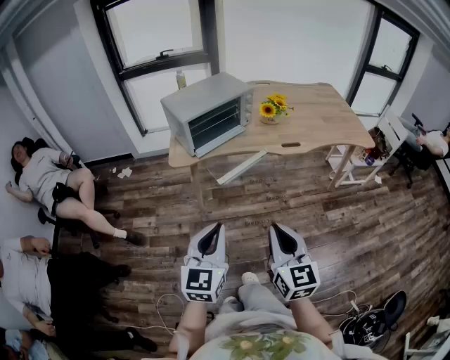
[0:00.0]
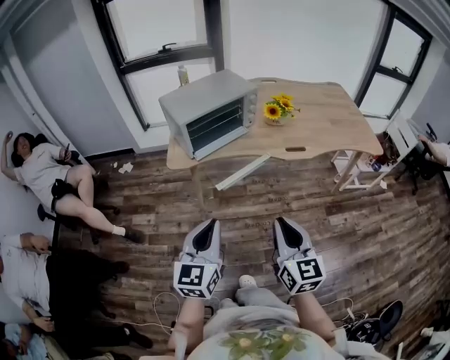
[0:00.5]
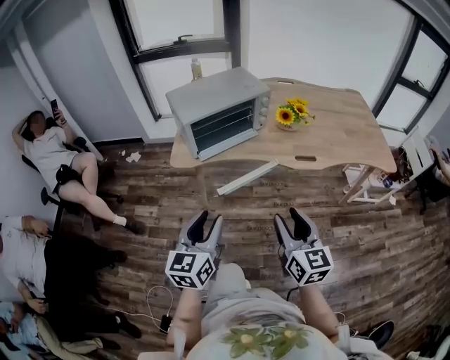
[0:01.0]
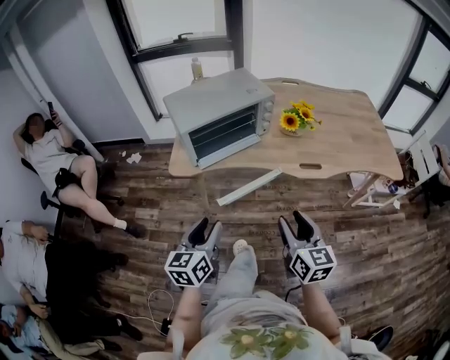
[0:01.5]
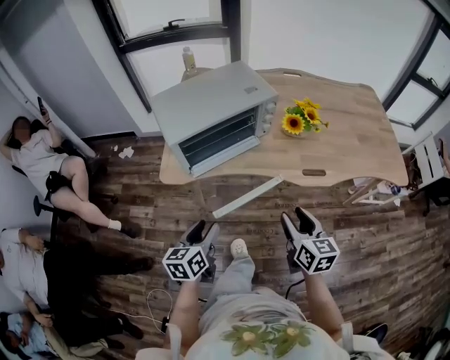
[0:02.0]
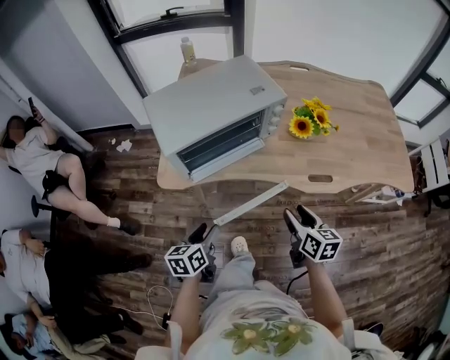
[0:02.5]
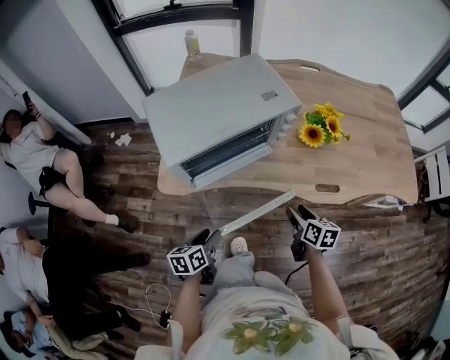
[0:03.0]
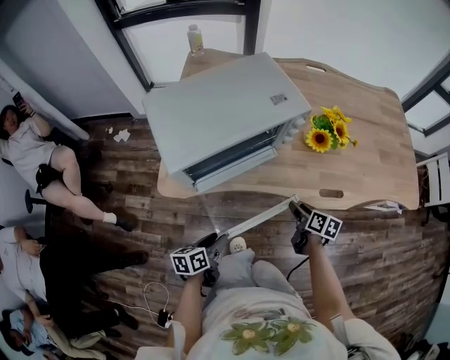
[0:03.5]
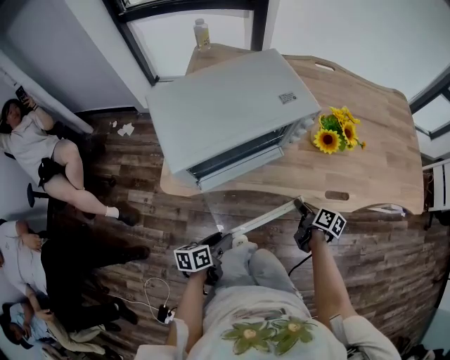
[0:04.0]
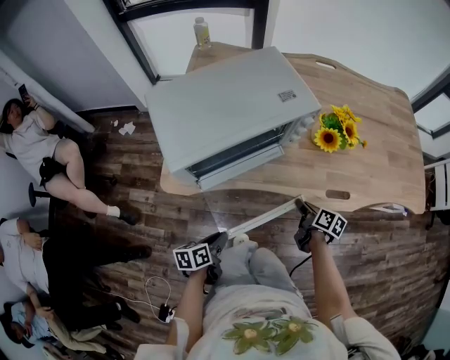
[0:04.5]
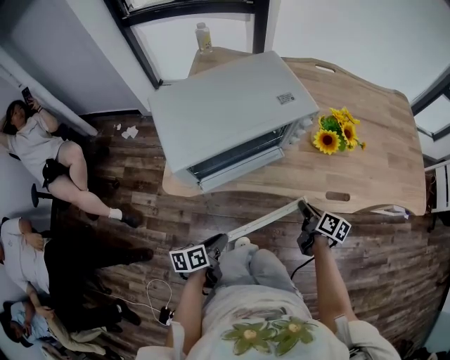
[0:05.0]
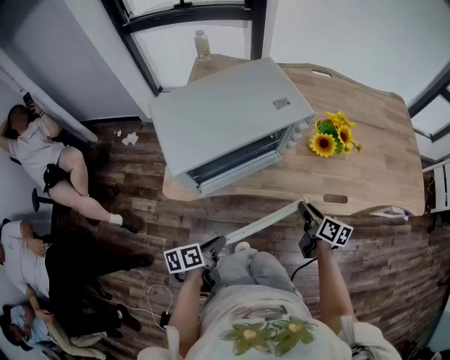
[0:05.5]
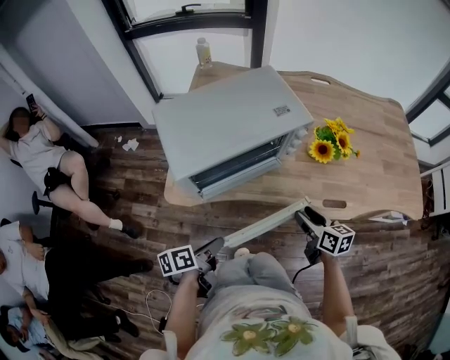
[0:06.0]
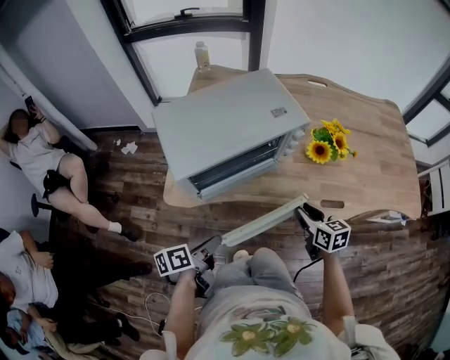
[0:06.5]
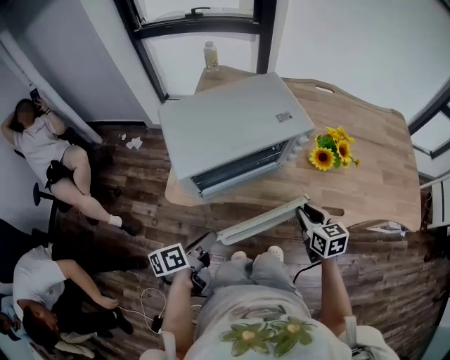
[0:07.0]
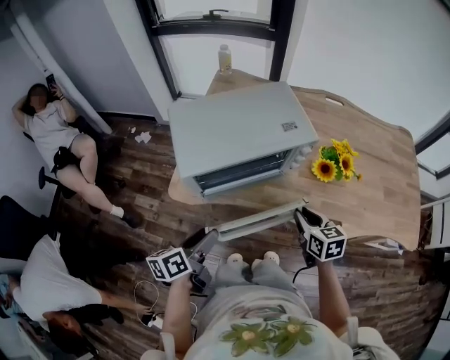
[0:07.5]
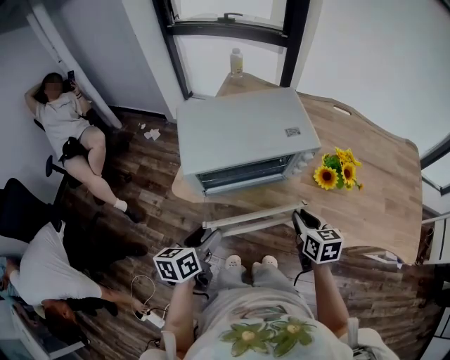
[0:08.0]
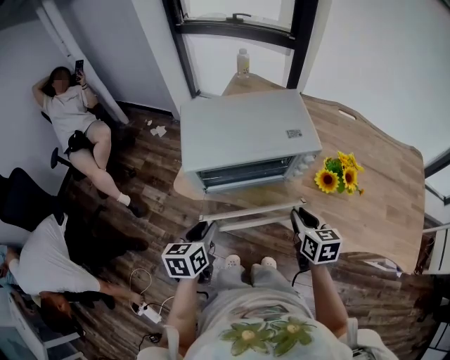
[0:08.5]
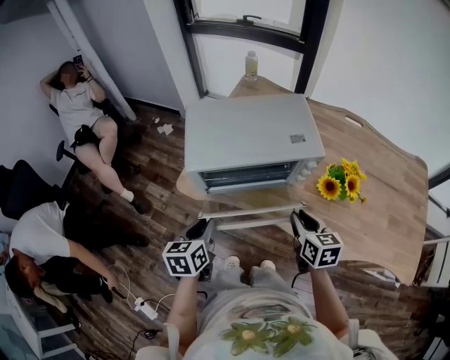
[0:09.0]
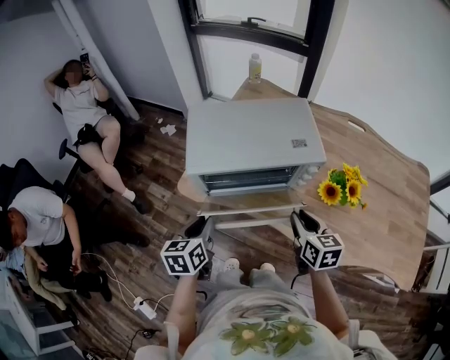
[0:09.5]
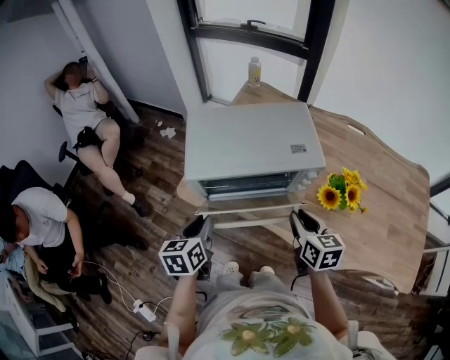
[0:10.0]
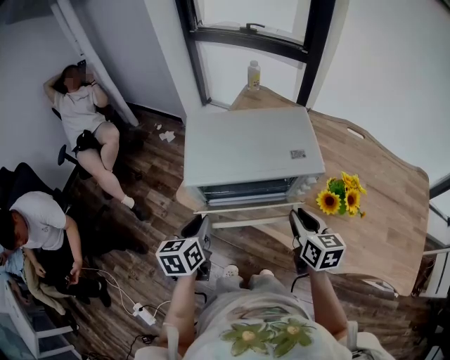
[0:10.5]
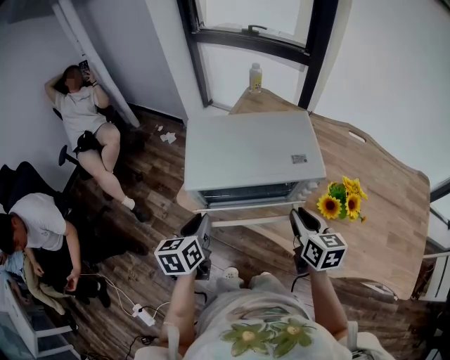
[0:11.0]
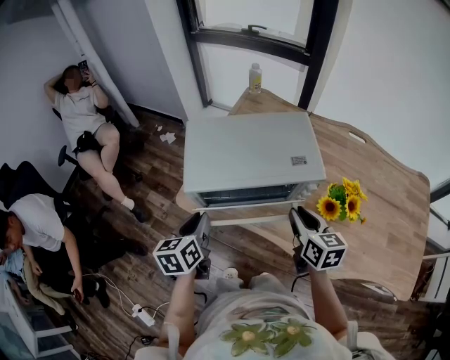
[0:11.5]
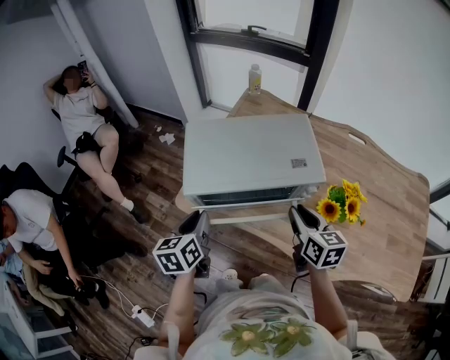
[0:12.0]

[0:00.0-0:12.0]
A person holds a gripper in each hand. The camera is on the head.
0:00.0 to 0:02.0: The left gripper travels forward and downward by some 30 cm, rotates approximately 40 degrees, and opens up. Meanwhile the right gripper travels forward by roughly 30 cm, turns by roughly 20 degrees, and opens.
0:02.0 to 0:04.0: The right gripper shifts some 30 cm downward and forward, and rolls clockwise, seen from behind, by approximately 40 degrees; the left gripper goes approximately 20 cm downward and forward, and swivels about 30 degrees.
0:04.0 to 0:06.0: Both grippers travel together upward, some 10 cm. The right gripper rotates some 40 degrees. Meanwhile the left gripper closes up.
0:06.0 to 0:08.0: Both grippers travel together upward, about 5 cm. The right gripper turns by roughly 20 degrees, and closes its fingers; the left gripper changes its angle by roughly 30 degrees, and opens up.
0:08.0 to 0:10.0: The right gripper moves about 5 cm, while the left gripper shifts approximately 5 cm forward, swivels roughly 20 degrees, and closes its fingers.
0:10.0 to 0:12.0: Both grippers move forward, some 5 cm.

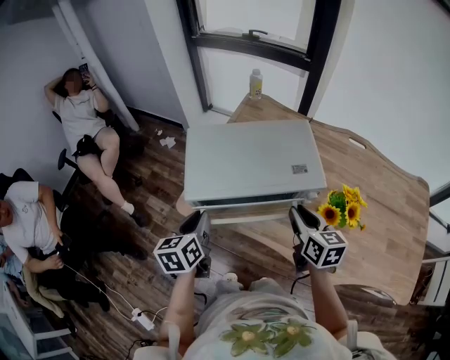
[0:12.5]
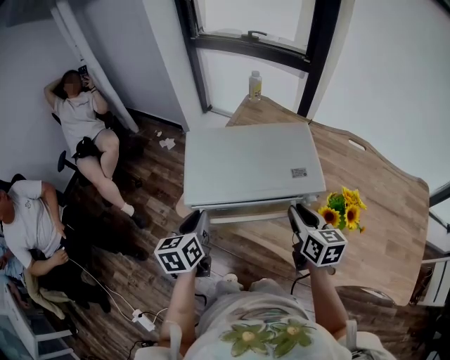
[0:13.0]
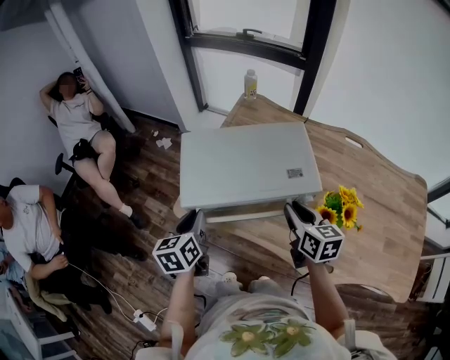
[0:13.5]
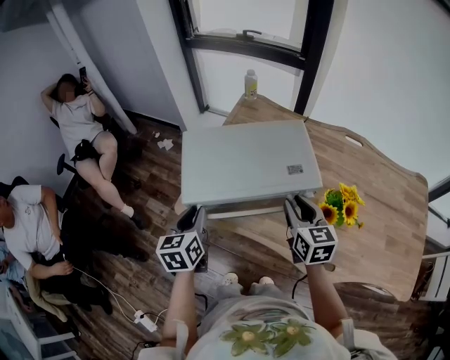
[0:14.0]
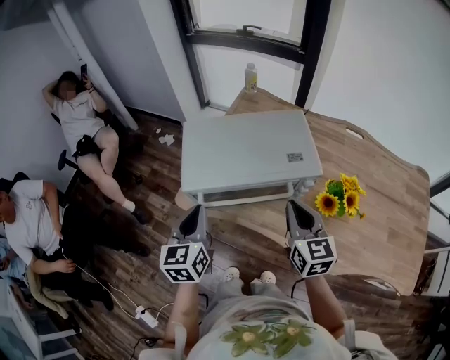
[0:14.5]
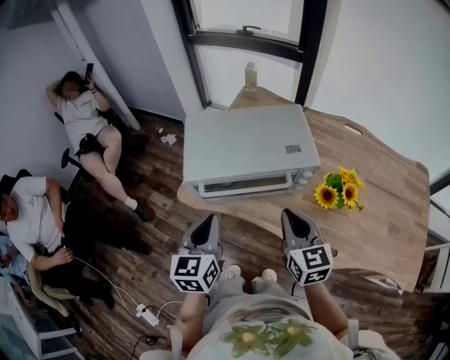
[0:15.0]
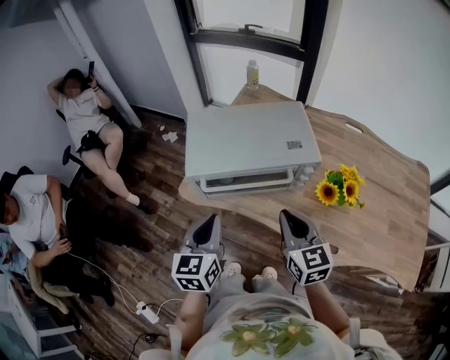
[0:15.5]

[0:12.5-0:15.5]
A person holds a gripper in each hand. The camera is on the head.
0:12.5 to 0:14.0: The grippers stay close to where they were, moving slightly.
0:14.0 to 0:15.5: Both grippers travel together backward, some 10 cm. The right gripper closes its fingers.

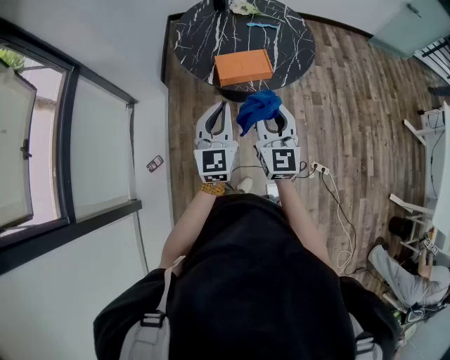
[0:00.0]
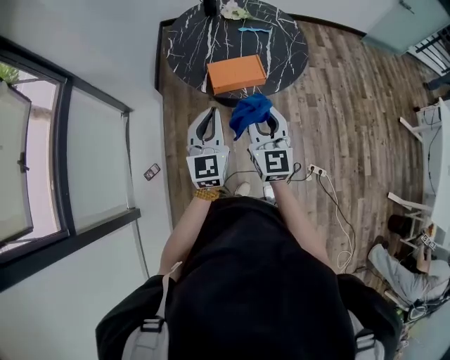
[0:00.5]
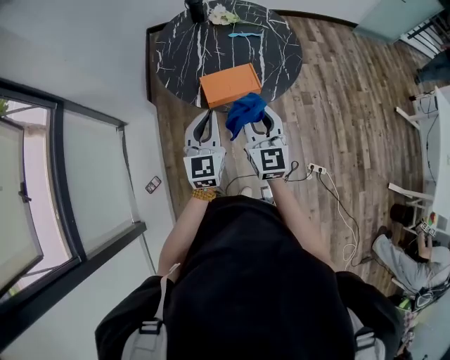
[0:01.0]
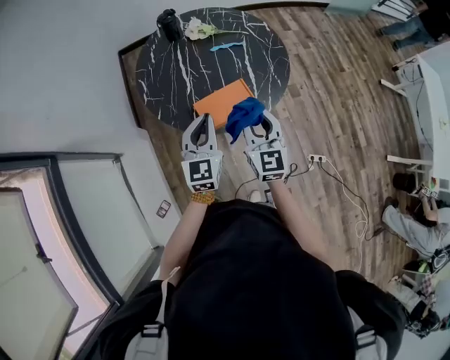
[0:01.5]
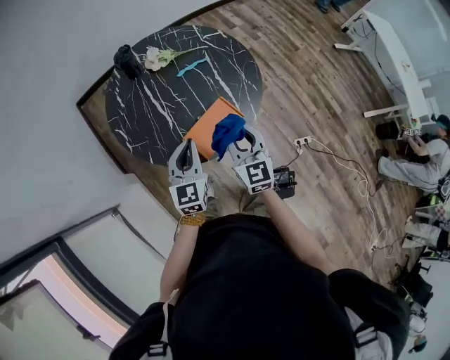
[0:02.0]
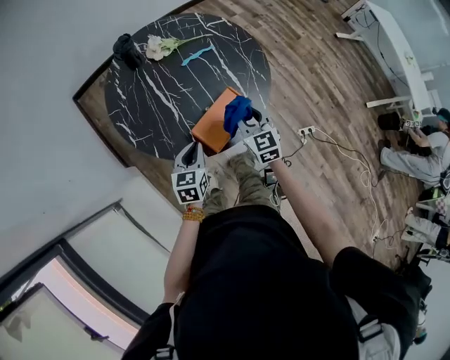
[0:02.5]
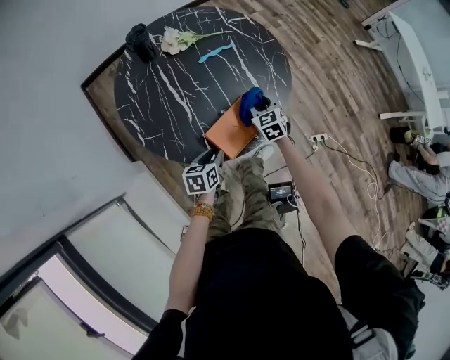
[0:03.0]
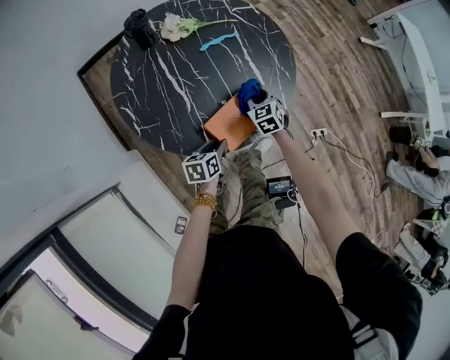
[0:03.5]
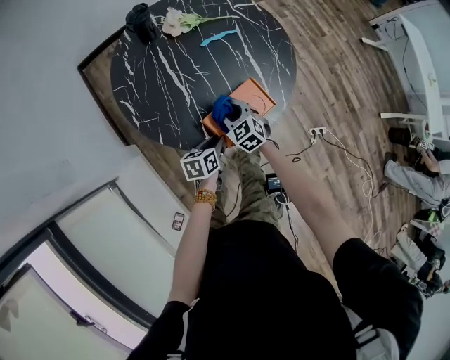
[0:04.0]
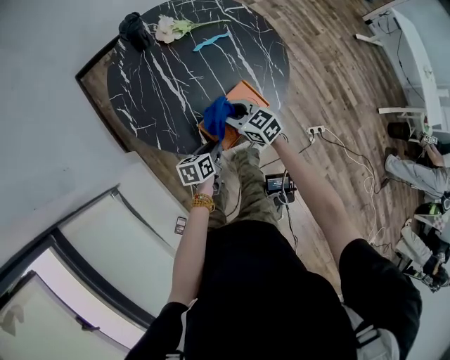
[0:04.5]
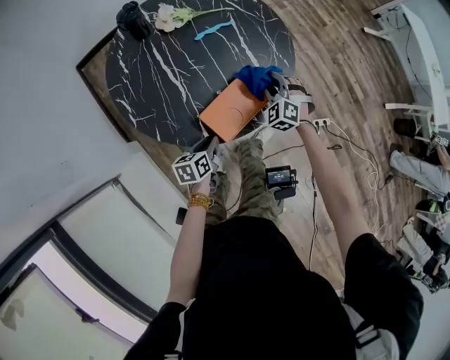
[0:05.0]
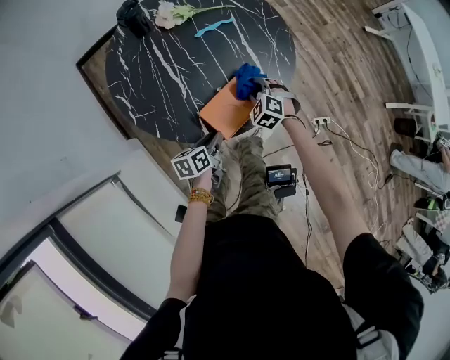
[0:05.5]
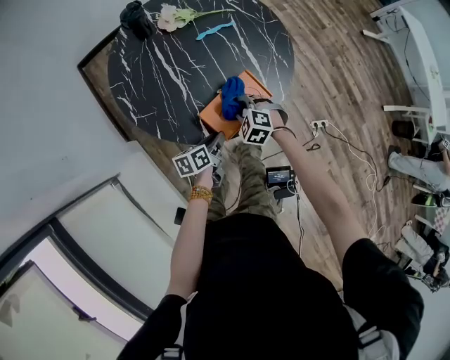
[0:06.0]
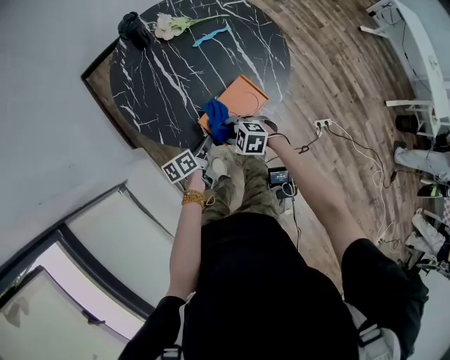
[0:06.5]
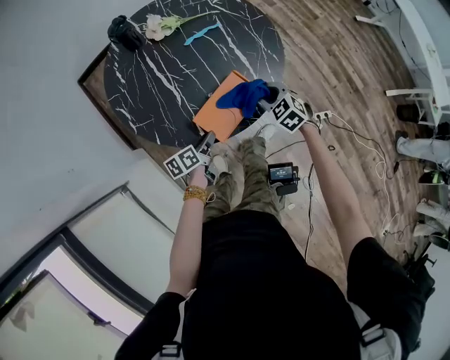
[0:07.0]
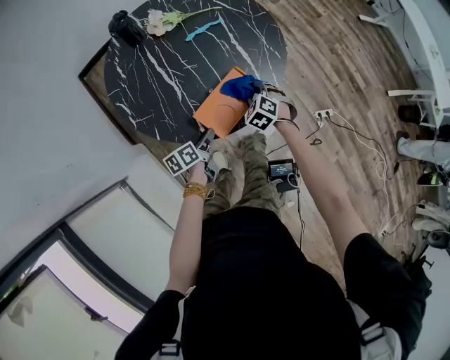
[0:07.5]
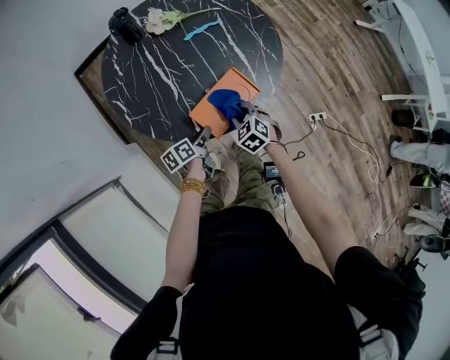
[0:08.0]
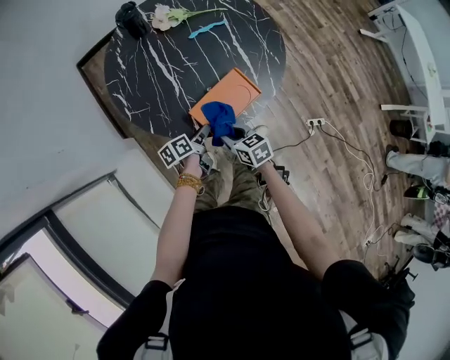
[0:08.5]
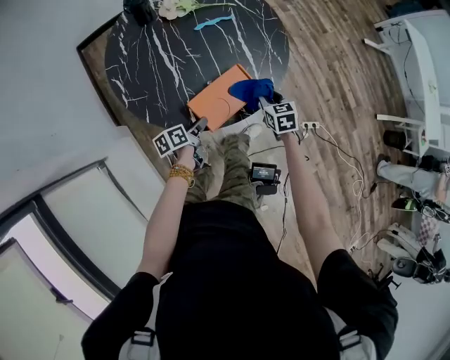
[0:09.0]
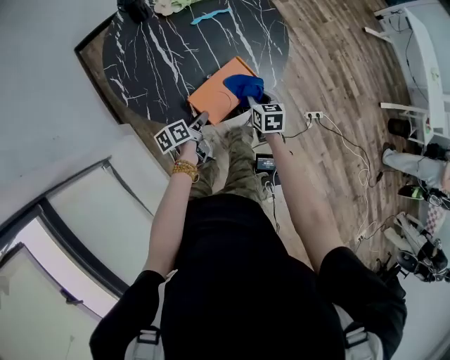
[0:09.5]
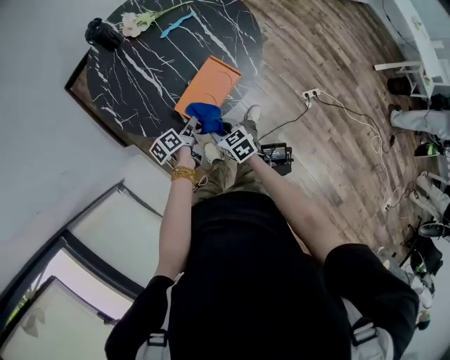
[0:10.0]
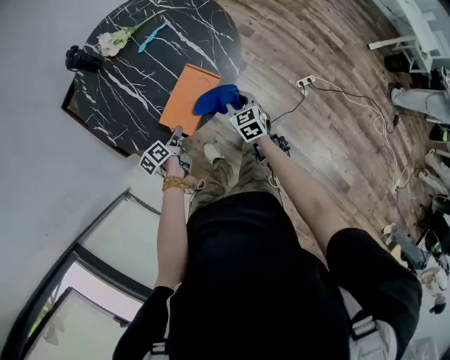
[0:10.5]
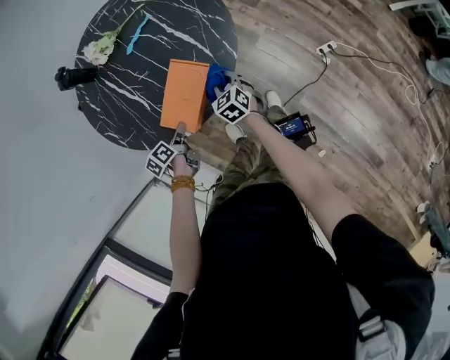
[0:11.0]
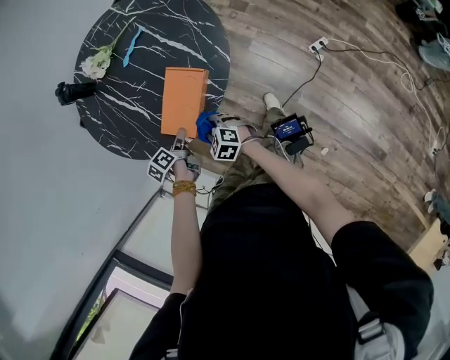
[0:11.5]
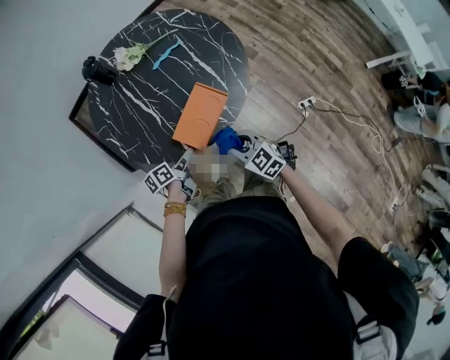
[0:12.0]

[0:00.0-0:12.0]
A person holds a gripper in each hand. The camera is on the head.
0:00.0 to 0:02.0: The left gripper ends up about 30 cm from where it was, and turns by about 30 degrees; the right gripper moves roughly 25 cm, and changes its angle by some 30 degrees.
0:02.0 to 0:04.0: Both grippers move downward, about 25 cm. The left gripper changes its angle by approximately 50 degrees, and opens up, while the right gripper tilts its fingers roughly 30 degrees downward.
0:04.0 to 0:06.0: The right gripper reaches roughly 15 cm to the right, then returns, and turns by some 30 degrees.
0:06.0 to 0:08.0: The right gripper swivels about 30 degrees.
0:08.0 to 0:10.0: The right gripper goes forward and backward, some 15 cm each way, reversing 2 times, and swivels some 40 degrees.
0:10.0 to 0:12.0: The right gripper goes left and right, roughly 15 cm each way, reversing 2 times, and rotates some 20 degrees; the left gripper heads upward, covering roughly 5 cm.
